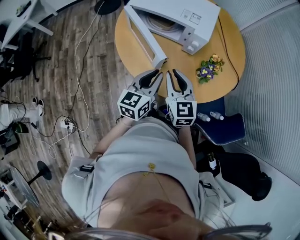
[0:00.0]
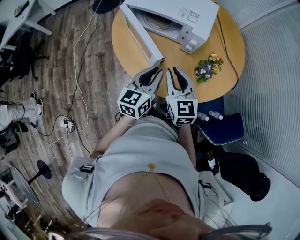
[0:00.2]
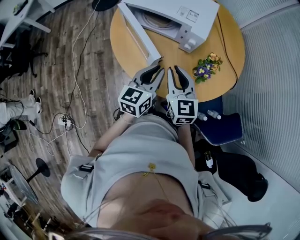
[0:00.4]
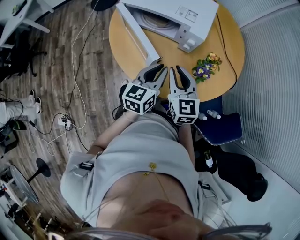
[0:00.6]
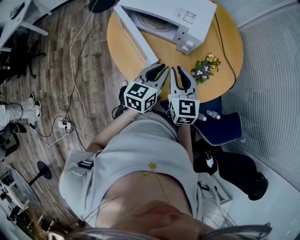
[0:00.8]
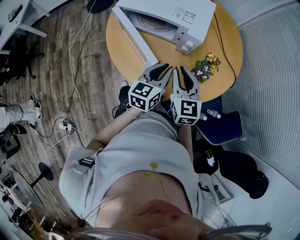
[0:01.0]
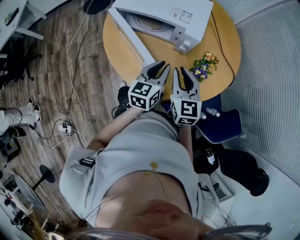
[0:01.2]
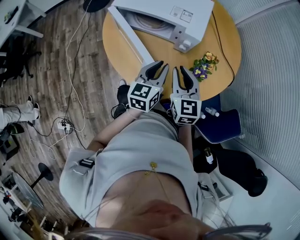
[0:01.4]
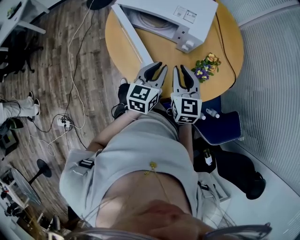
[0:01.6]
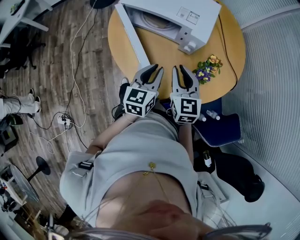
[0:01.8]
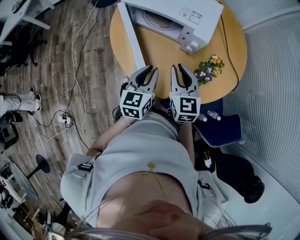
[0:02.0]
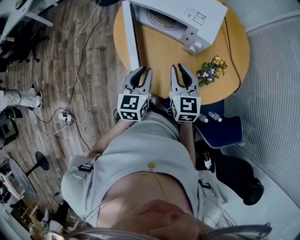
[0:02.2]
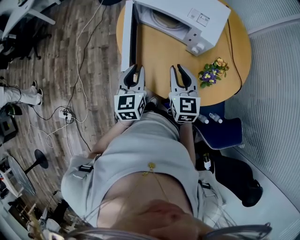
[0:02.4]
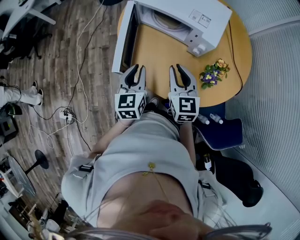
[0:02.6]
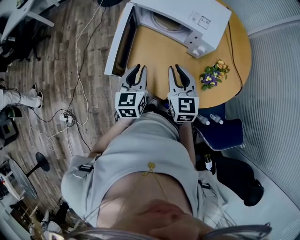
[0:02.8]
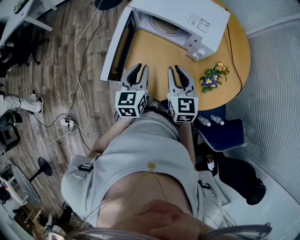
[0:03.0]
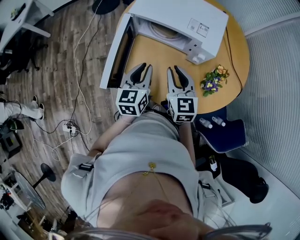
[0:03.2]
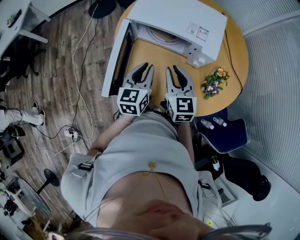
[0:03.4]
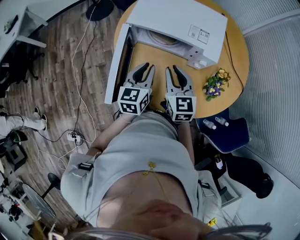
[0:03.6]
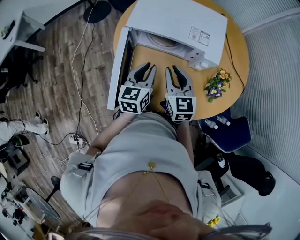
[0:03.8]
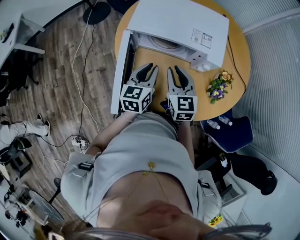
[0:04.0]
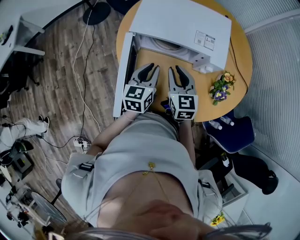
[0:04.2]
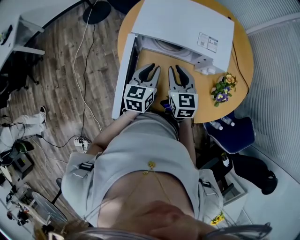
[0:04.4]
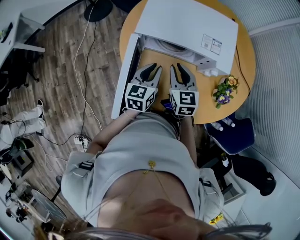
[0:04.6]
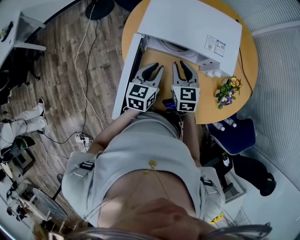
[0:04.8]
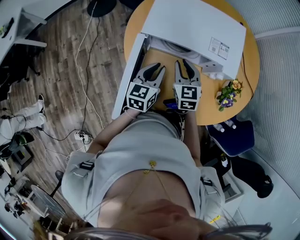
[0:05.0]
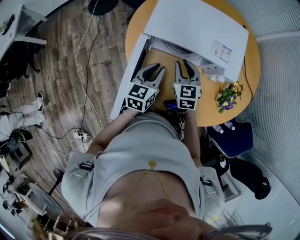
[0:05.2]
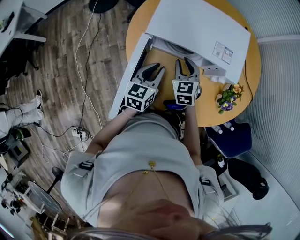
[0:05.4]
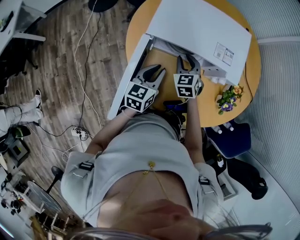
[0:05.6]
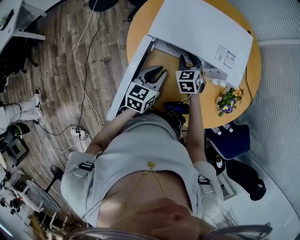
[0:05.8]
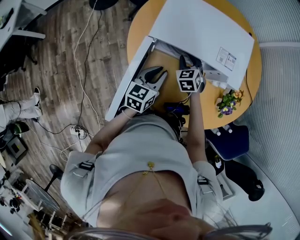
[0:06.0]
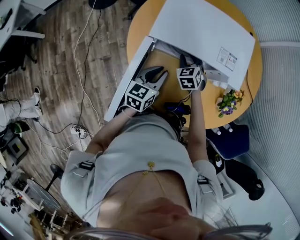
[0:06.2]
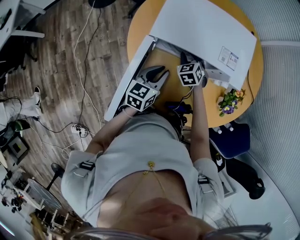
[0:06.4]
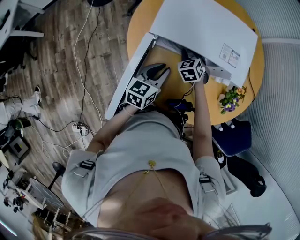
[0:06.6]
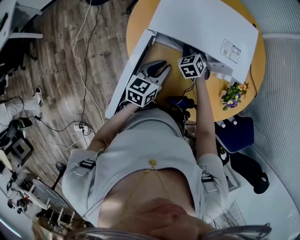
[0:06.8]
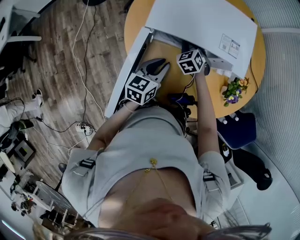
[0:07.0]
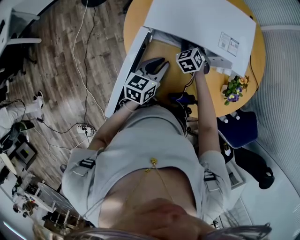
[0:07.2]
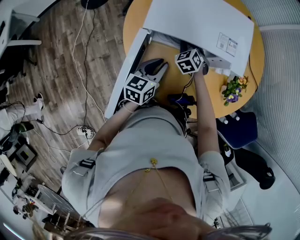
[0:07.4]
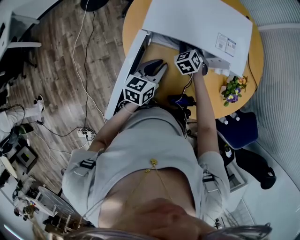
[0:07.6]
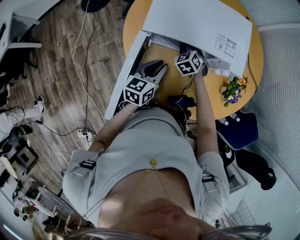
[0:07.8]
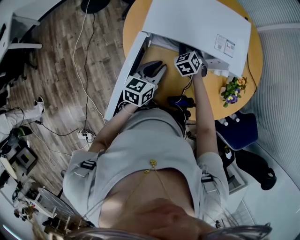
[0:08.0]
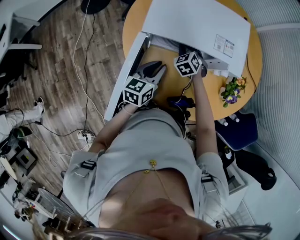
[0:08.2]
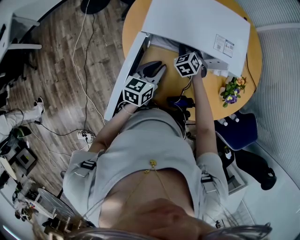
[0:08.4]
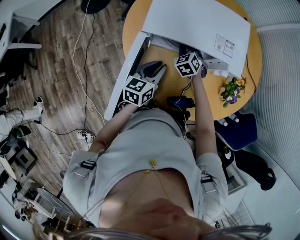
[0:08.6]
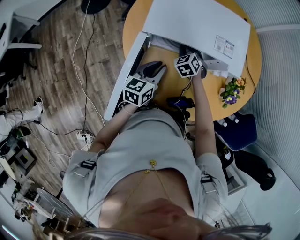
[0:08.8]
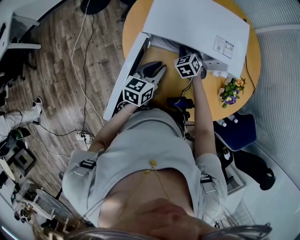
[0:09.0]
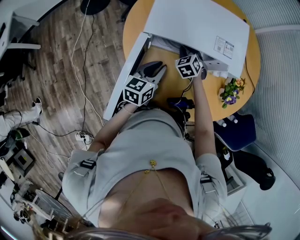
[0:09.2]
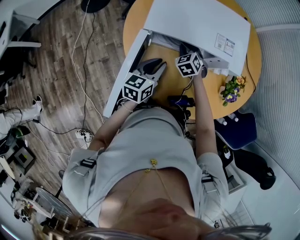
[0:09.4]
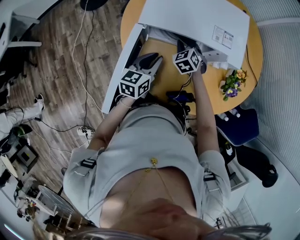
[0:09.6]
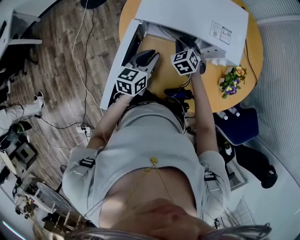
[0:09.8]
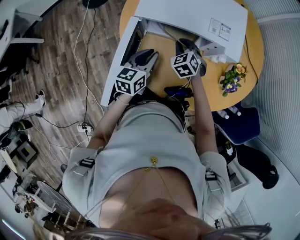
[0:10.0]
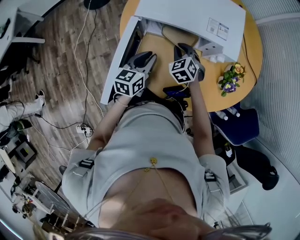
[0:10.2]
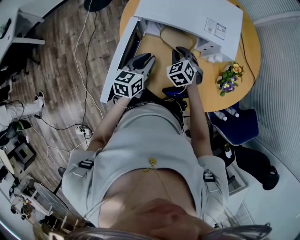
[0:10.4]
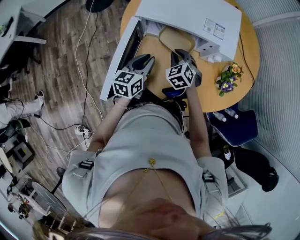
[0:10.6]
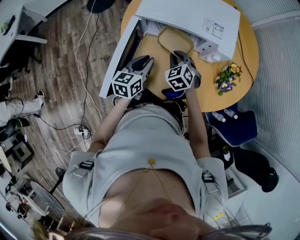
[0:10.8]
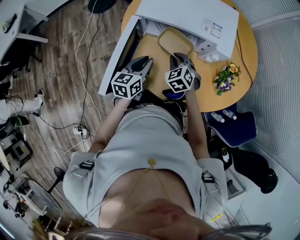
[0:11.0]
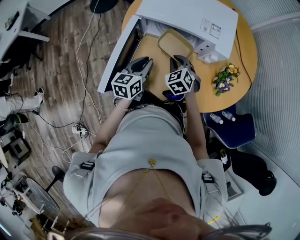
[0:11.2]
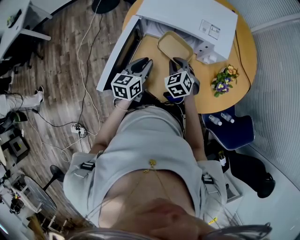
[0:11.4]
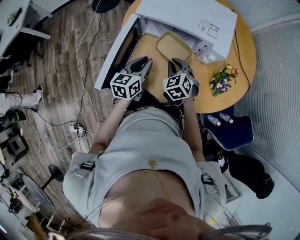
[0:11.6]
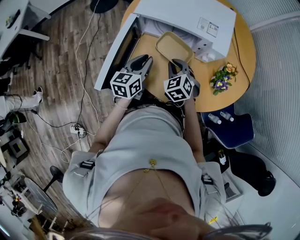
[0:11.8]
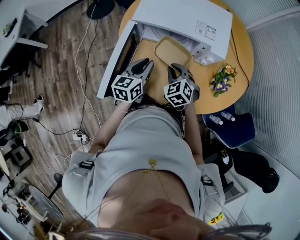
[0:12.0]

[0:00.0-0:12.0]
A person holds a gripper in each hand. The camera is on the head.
0:00.0 to 0:01.6: The right gripper goes some 10 cm forward and to the right; the left gripper heads forward, covering approximately 5 cm.
0:01.6 to 0:03.0: The left gripper shifts some 15 cm to the left. Meanwhile the right gripper goes roughly 5 cm to the left.
0:03.0 to 0:04.4: The left gripper travels forward by some 15 cm, and rotates some 20 degrees. The right gripper goes some 15 cm forward and to the left.
0:04.4 to 0:06.0: The right gripper heads downward and forward, covering some 15 cm, and changes its angle by some 30 degrees.
0:06.0 to 0:07.6: The grippers stay close to where they were, moving slightly.
0:07.6 to 0:09.0: Neither gripper changes place.
0:09.0 to 0:10.4: The right gripper heads backward, covering approximately 10 cm.
0:10.4 to 0:12.0: The right gripper shifts approximately 10 cm backward.

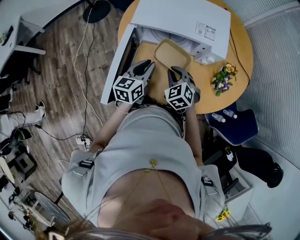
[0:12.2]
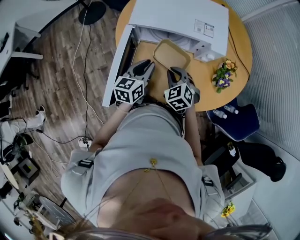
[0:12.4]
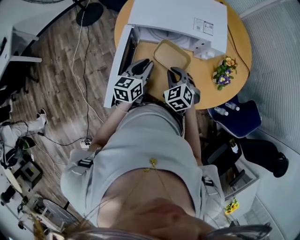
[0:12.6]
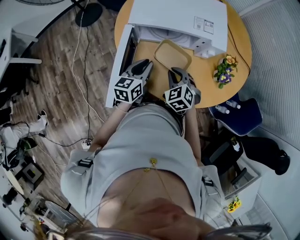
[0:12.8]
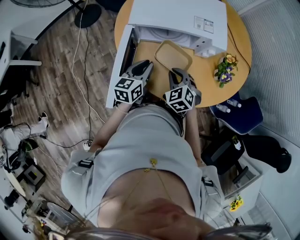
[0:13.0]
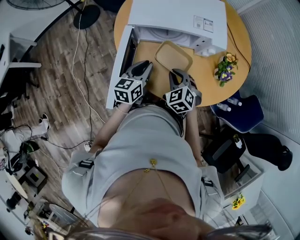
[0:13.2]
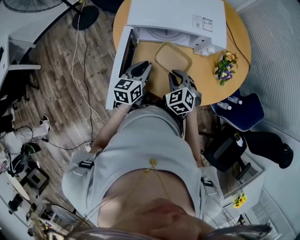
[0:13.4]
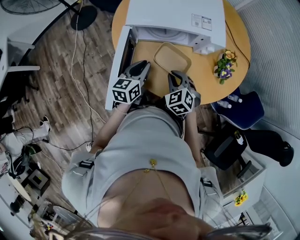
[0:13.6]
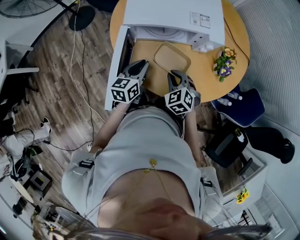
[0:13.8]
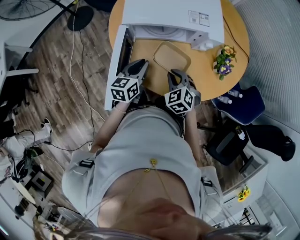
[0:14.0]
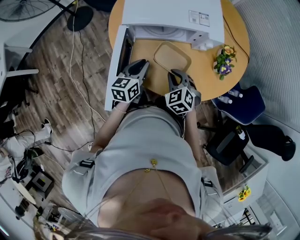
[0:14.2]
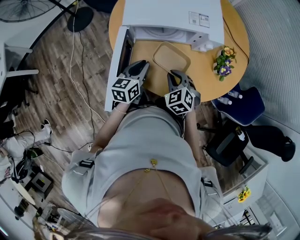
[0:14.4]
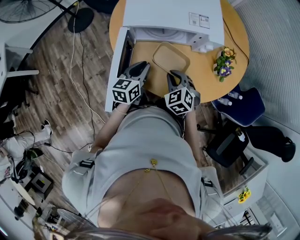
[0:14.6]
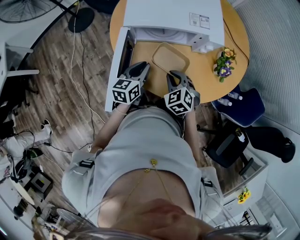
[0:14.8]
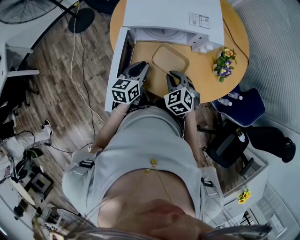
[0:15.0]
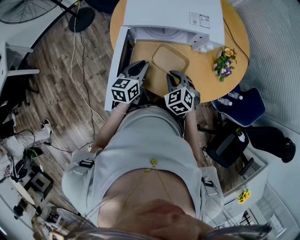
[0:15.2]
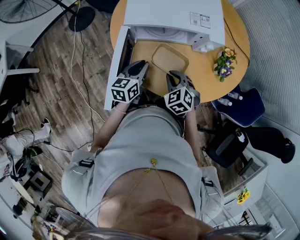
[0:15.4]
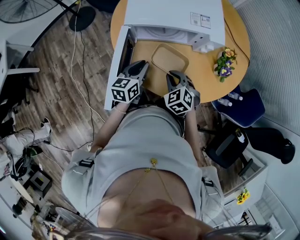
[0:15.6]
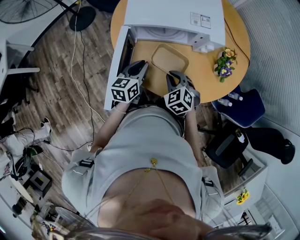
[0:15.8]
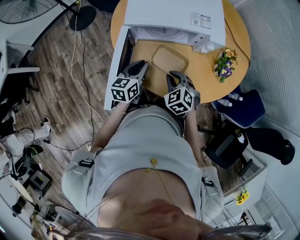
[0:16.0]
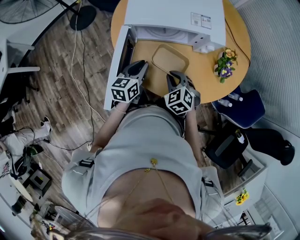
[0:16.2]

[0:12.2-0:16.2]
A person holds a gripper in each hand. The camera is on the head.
0:12.2 to 0:13.6: The grippers make only small movements.
0:13.6 to 0:16.2: Both grippers stay about where they are.

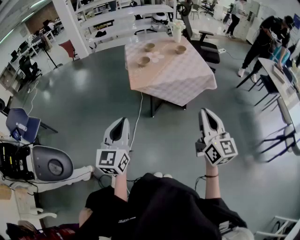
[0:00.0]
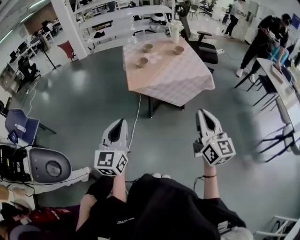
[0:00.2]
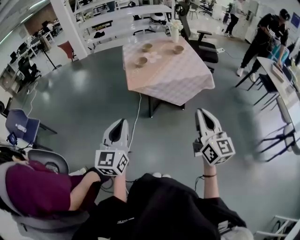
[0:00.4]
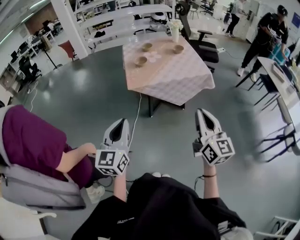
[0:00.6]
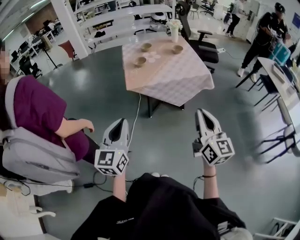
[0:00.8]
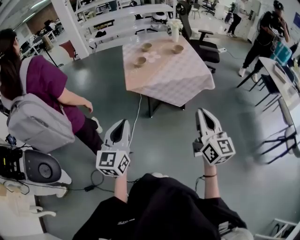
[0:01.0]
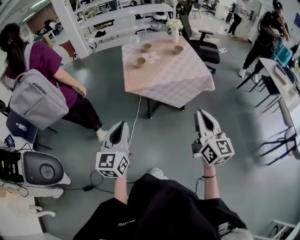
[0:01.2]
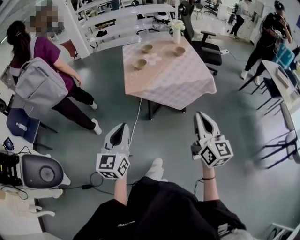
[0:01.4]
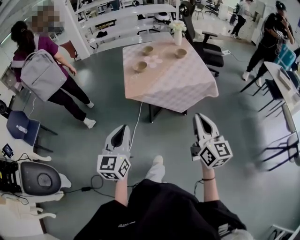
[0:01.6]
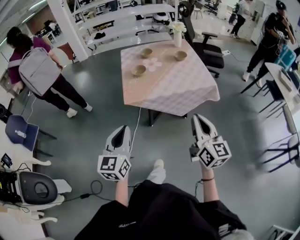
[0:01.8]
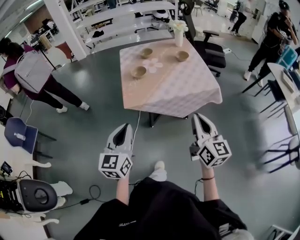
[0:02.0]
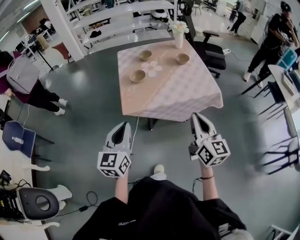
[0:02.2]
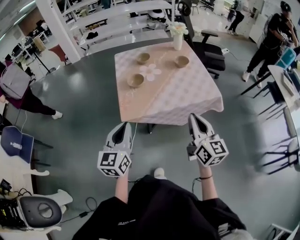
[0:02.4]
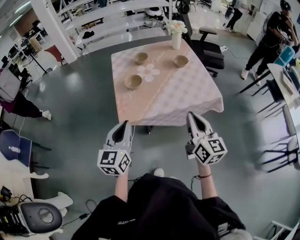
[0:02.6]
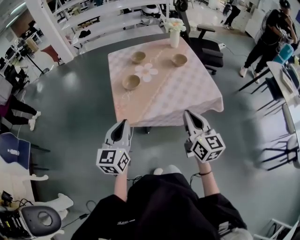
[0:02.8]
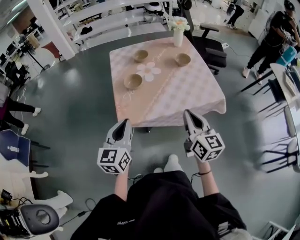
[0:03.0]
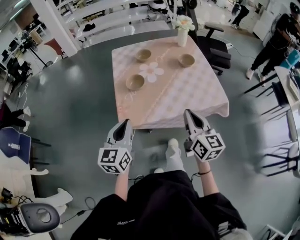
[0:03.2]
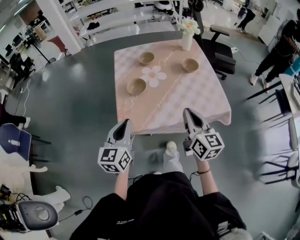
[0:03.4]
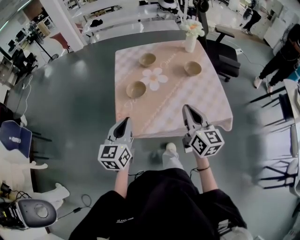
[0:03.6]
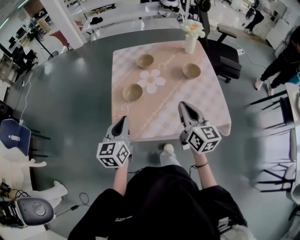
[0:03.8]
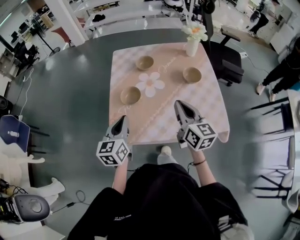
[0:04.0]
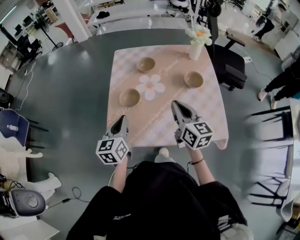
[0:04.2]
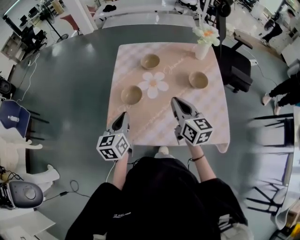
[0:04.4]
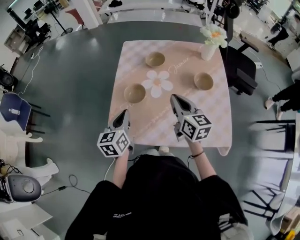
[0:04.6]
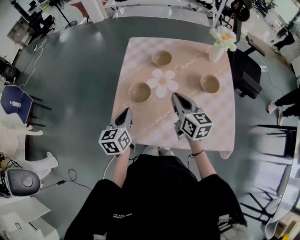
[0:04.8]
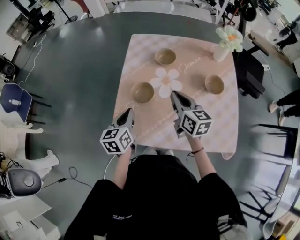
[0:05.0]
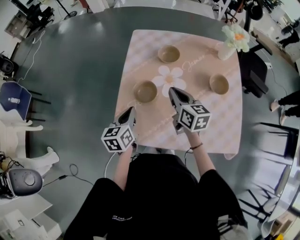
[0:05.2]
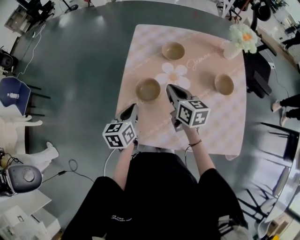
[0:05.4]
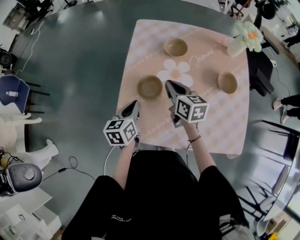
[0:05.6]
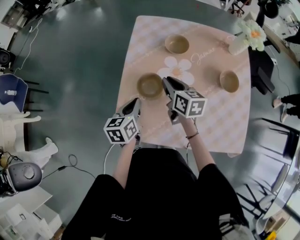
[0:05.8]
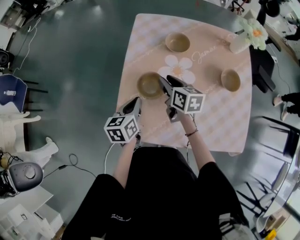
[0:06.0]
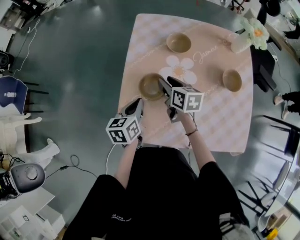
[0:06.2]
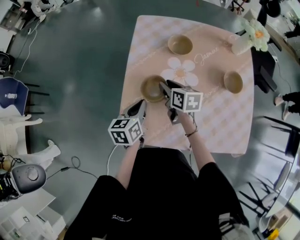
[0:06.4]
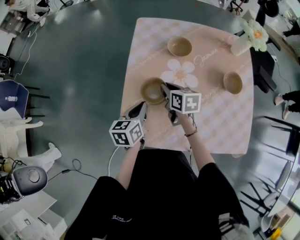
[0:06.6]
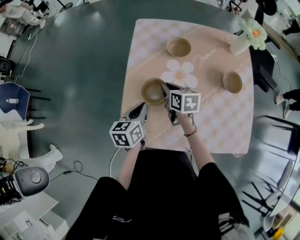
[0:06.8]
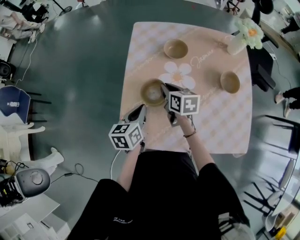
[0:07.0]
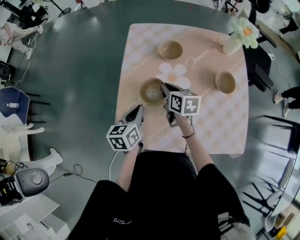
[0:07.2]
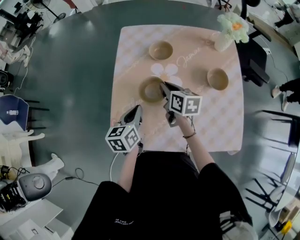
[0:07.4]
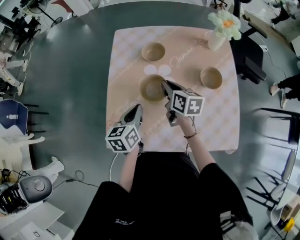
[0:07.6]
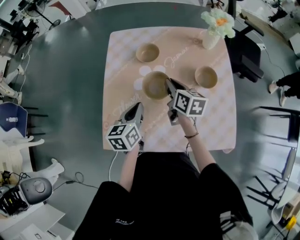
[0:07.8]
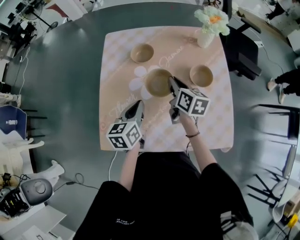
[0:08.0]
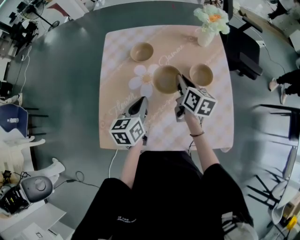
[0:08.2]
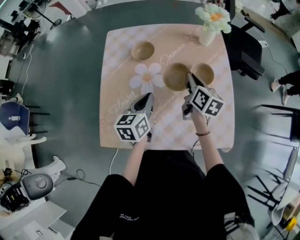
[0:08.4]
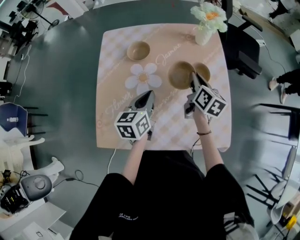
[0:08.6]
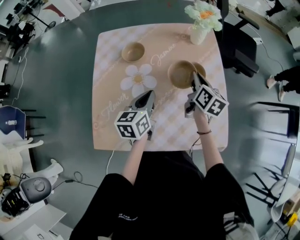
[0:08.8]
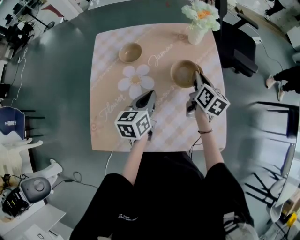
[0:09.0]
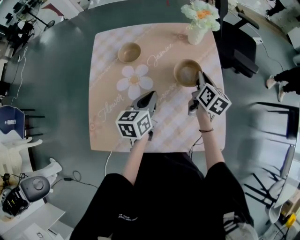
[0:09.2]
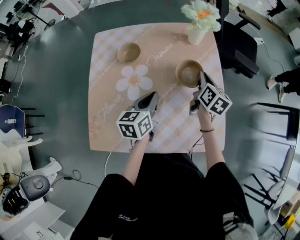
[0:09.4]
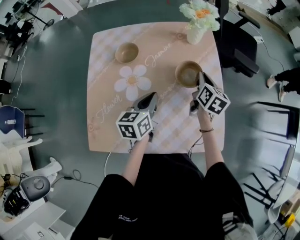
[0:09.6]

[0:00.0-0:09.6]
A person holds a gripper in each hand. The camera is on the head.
0:00.0 to 0:01.6: The right gripper goes some 10 cm forward, while the left gripper travels forward and to the right by some 10 cm.
0:01.6 to 0:03.2: The two grippers go approximately 30 cm forward.
0:03.2 to 0:04.8: The left gripper shifts some 20 cm forward and downward, and changes its angle by approximately 30 degrees, while the right gripper moves forward, roughly 30 cm, and turns by some 30 degrees.
0:04.8 to 0:06.4: The right gripper moves downward, to the left and forward, some 20 cm, changes its angle by approximately 30 degrees, and opens, while the left gripper is displaced downward and forward by about 10 cm.
0:06.4 to 0:08.0: The right gripper heads to the right, covering approximately 20 cm, changes its angle by some 20 degrees, and closes its fingers. The left gripper shifts some 15 cm to the right and upward.
0:08.0 to 0:09.6: The right gripper travels to the right by about 20 cm, and turns by about 20 degrees; the left gripper travels to the right and forward by approximately 15 cm.
